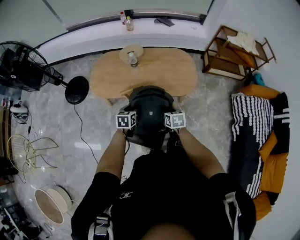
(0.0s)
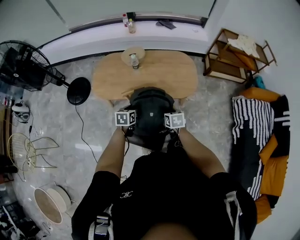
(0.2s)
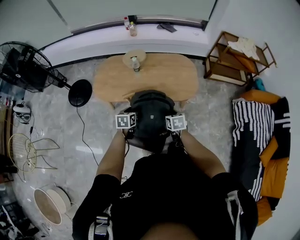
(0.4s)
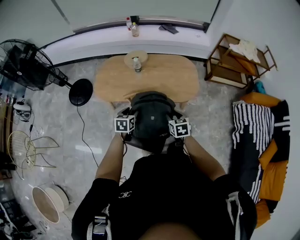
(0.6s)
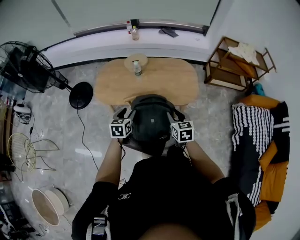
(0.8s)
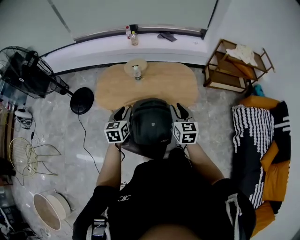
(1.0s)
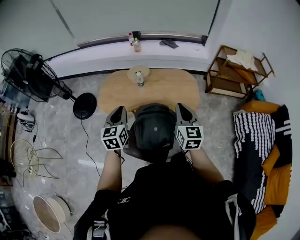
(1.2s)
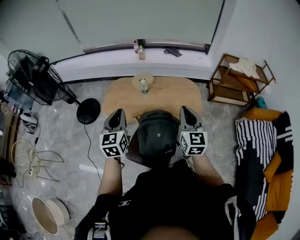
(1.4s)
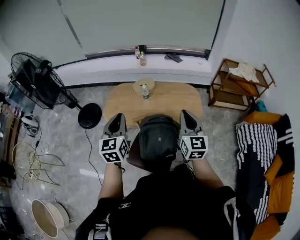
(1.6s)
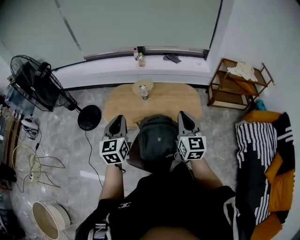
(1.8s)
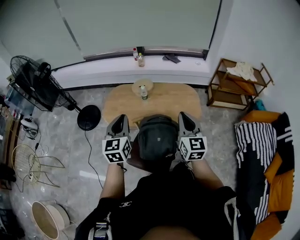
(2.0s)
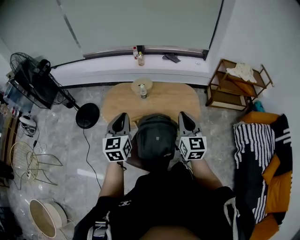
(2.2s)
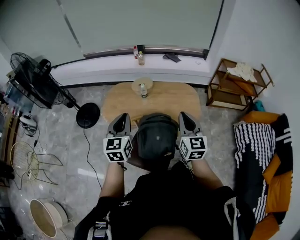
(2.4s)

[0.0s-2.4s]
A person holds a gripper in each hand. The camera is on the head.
0.0s to 1.2s: The two grippers go approximately 25 cm upward. The left gripper turns by about 30 degrees, and closes up; the right gripper tilts its fingers some 40 degrees upward, and opens and closes again.
1.2s to 2.4s: Both grippers move upward, some 5 cm.

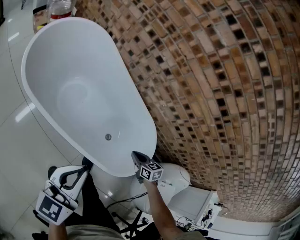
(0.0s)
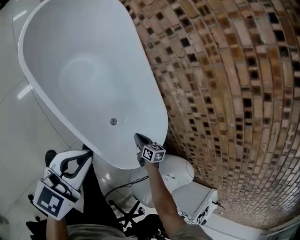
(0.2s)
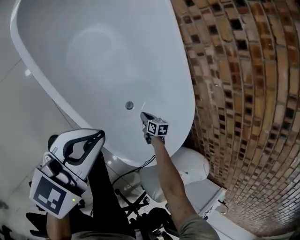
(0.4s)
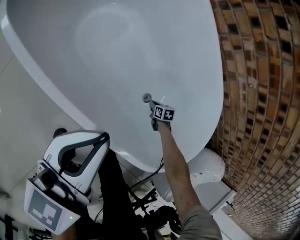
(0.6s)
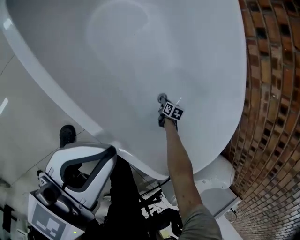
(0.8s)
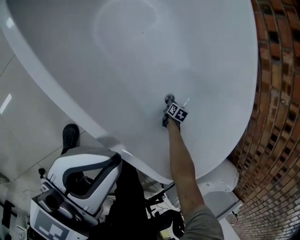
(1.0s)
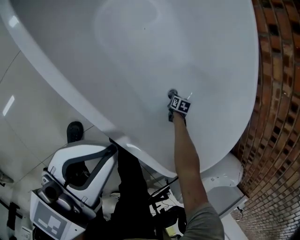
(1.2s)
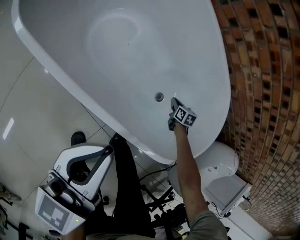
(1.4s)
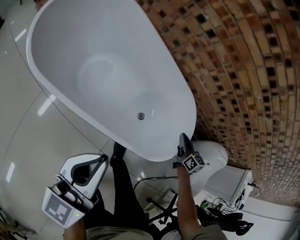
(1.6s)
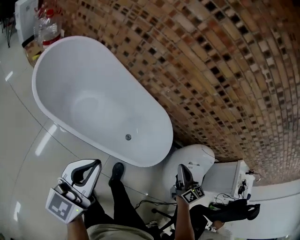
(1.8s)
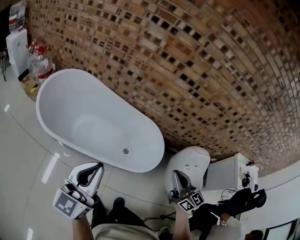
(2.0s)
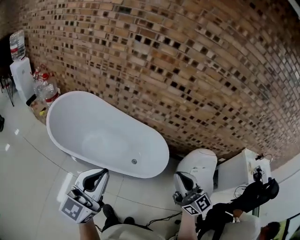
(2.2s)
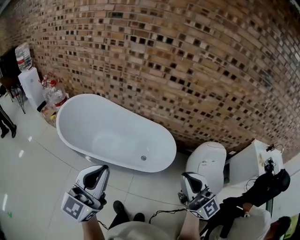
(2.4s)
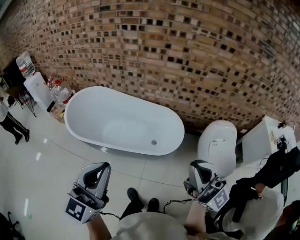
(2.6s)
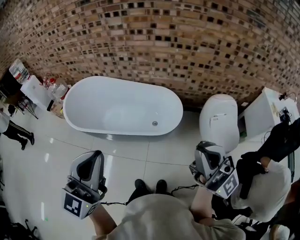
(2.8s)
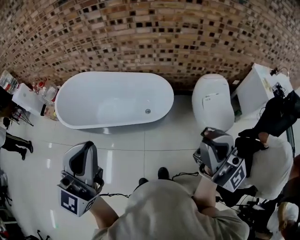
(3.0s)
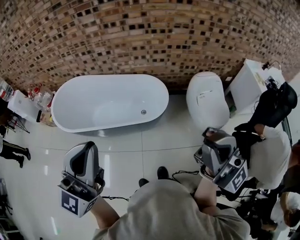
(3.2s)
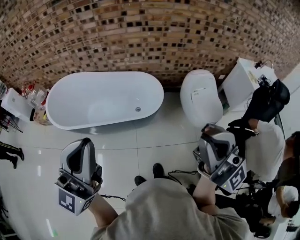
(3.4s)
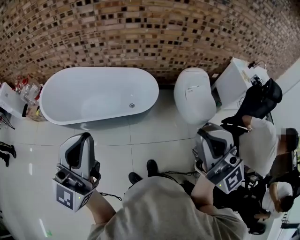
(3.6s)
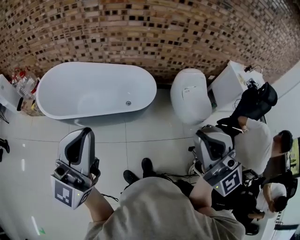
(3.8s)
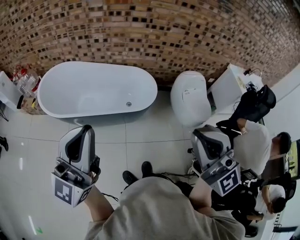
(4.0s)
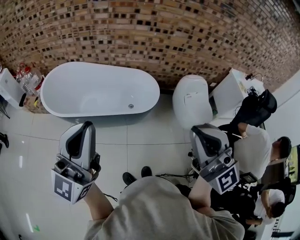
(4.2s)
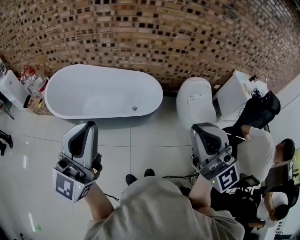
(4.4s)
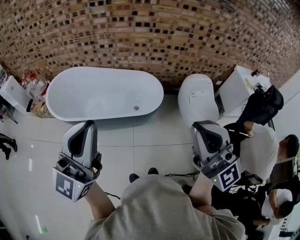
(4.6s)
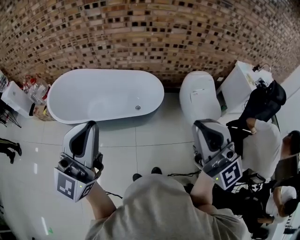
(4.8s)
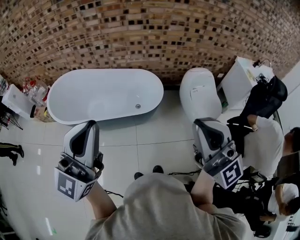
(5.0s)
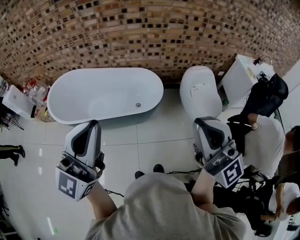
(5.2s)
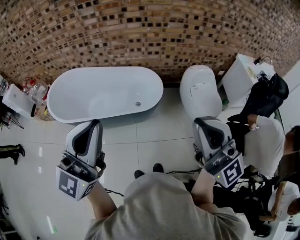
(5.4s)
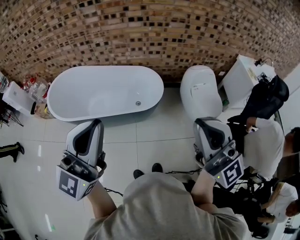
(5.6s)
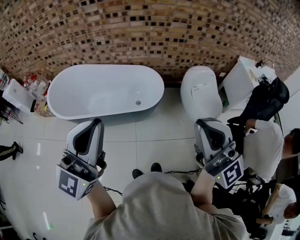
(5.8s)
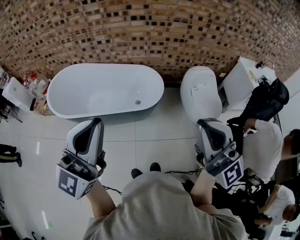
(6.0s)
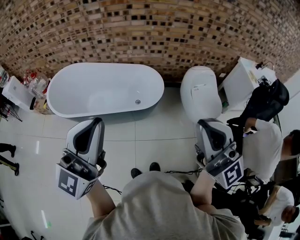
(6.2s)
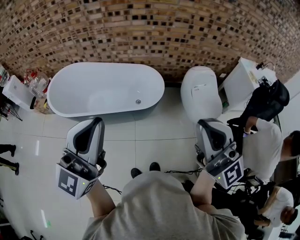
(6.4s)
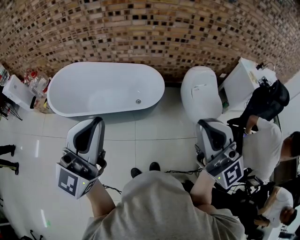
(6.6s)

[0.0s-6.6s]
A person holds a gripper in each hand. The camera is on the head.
0.0s to 1.6s: The right gripper moves some 60 cm downward and comes back, and rotates some 40 degrees; the left gripper reaches some 30 cm downward, then returns.
1.6s to 3.2s: The right gripper shifts roughly 90 cm upward and backward, and tips its fingers upward by roughly 70 degrees. Meanwhile the left gripper travels upward and backward by approximately 60 cm, and changes its angle by approximately 50 degrees.
3.2s to 5.0s: The left gripper reaches roughly 10 cm to the left, then returns.
5.0s to 6.6s: The grippers make only small movements.

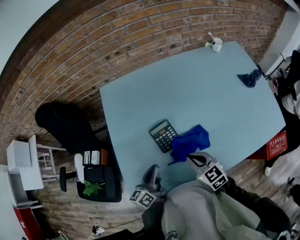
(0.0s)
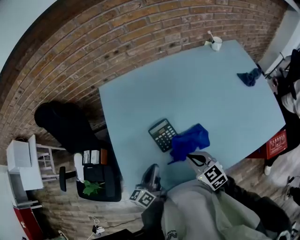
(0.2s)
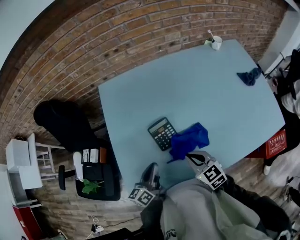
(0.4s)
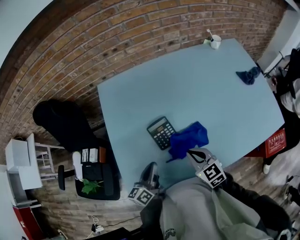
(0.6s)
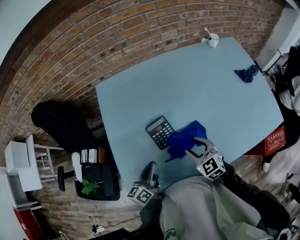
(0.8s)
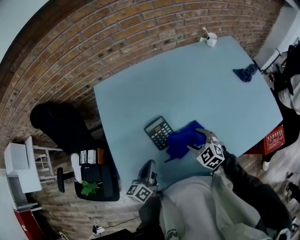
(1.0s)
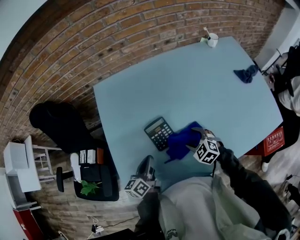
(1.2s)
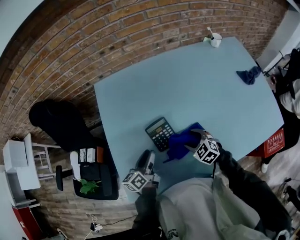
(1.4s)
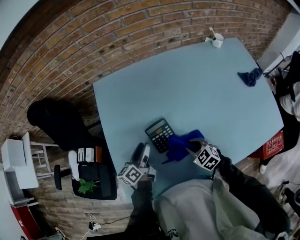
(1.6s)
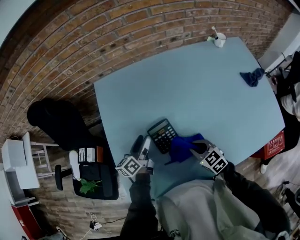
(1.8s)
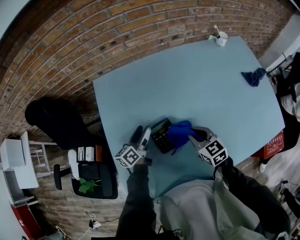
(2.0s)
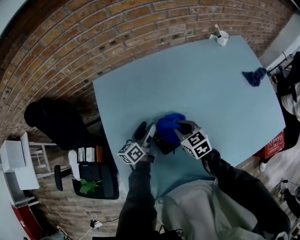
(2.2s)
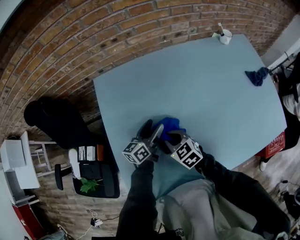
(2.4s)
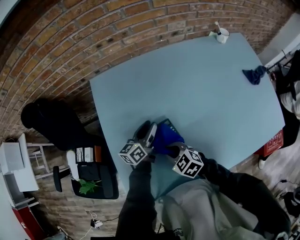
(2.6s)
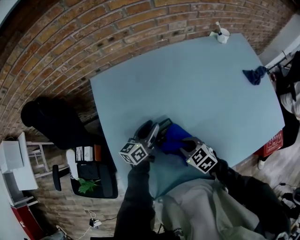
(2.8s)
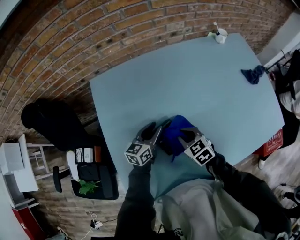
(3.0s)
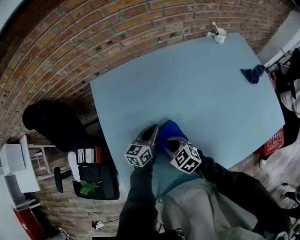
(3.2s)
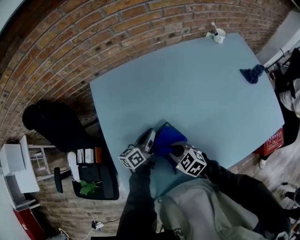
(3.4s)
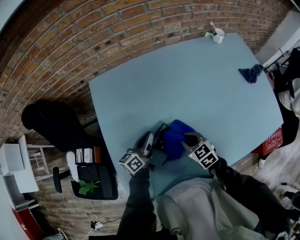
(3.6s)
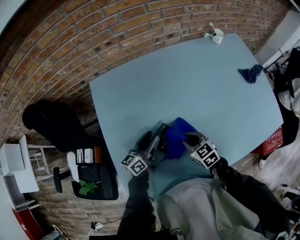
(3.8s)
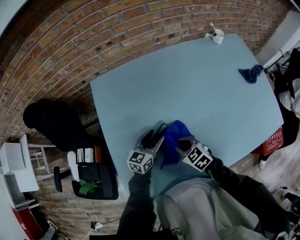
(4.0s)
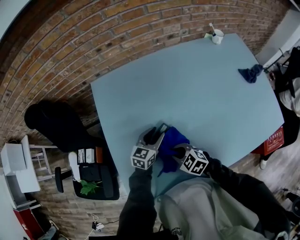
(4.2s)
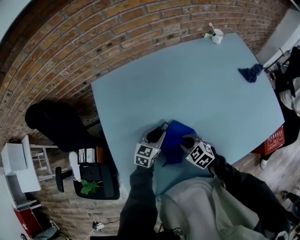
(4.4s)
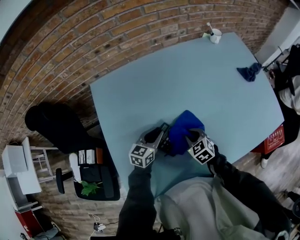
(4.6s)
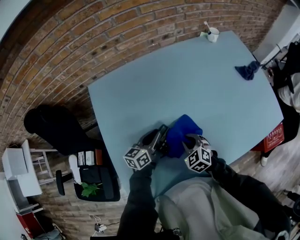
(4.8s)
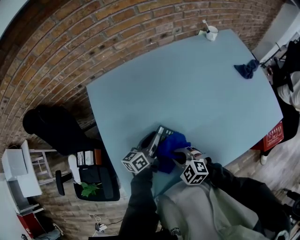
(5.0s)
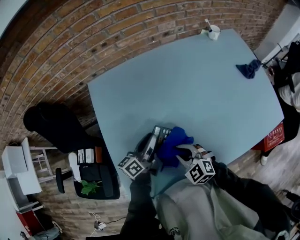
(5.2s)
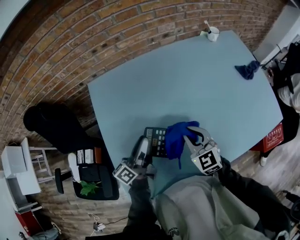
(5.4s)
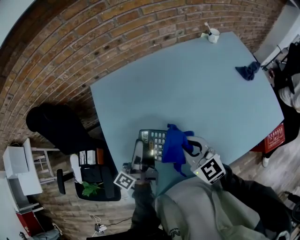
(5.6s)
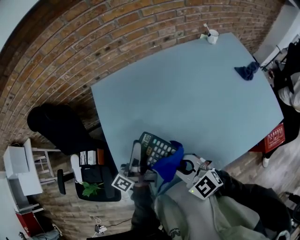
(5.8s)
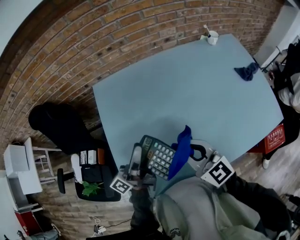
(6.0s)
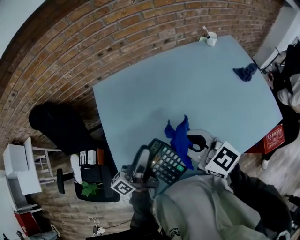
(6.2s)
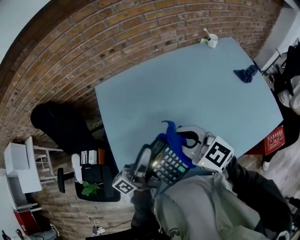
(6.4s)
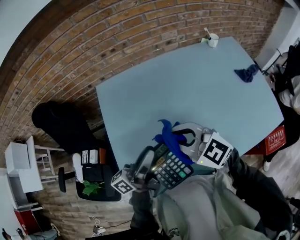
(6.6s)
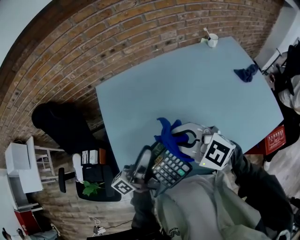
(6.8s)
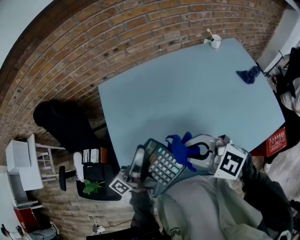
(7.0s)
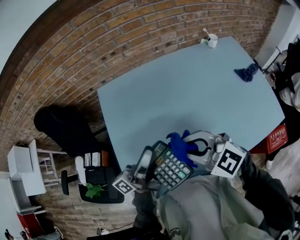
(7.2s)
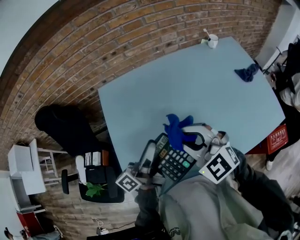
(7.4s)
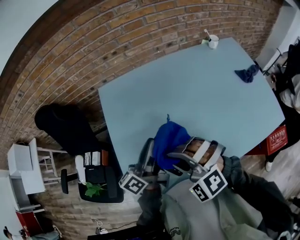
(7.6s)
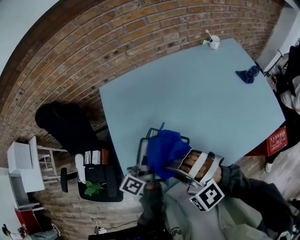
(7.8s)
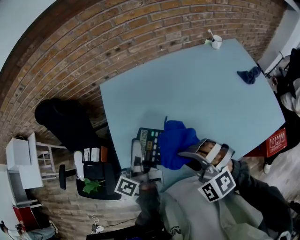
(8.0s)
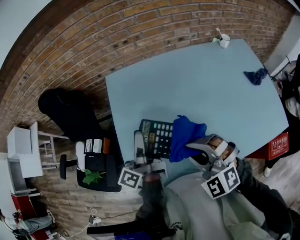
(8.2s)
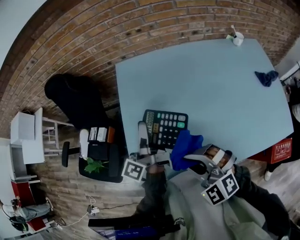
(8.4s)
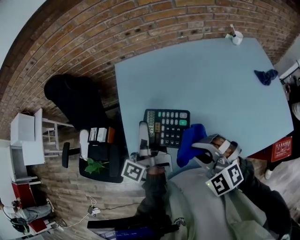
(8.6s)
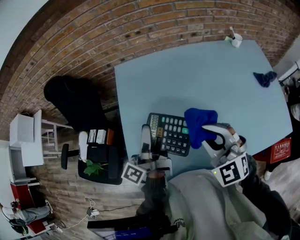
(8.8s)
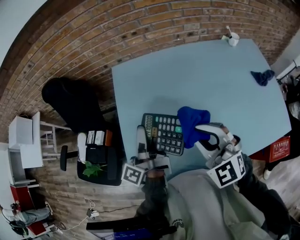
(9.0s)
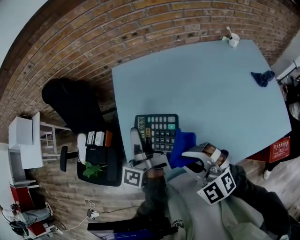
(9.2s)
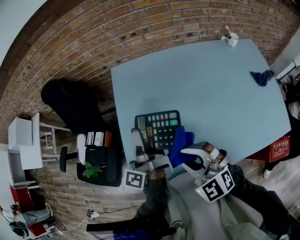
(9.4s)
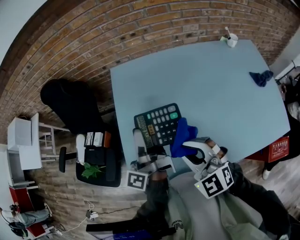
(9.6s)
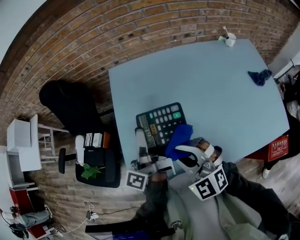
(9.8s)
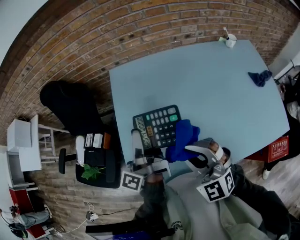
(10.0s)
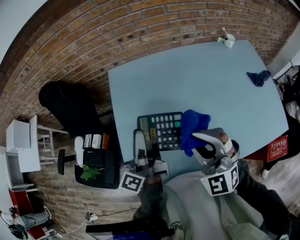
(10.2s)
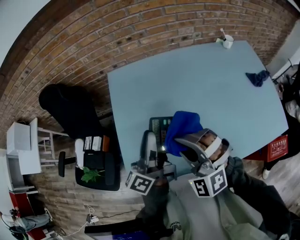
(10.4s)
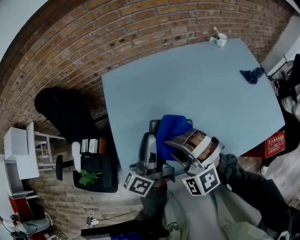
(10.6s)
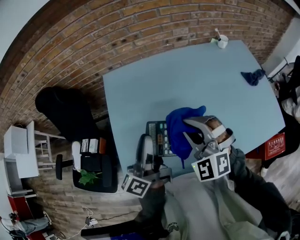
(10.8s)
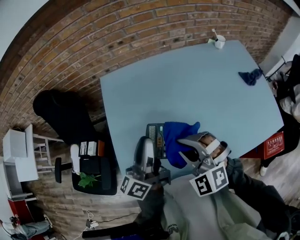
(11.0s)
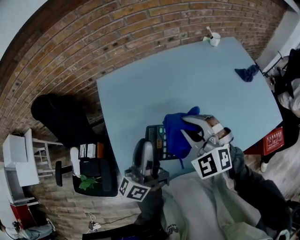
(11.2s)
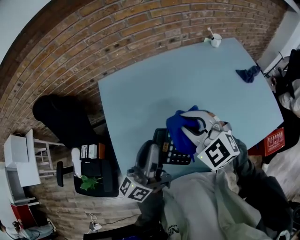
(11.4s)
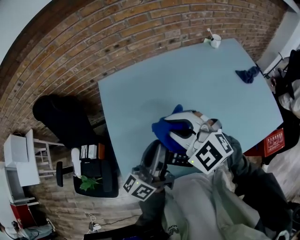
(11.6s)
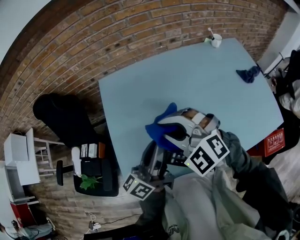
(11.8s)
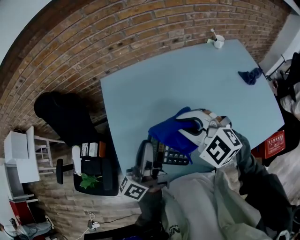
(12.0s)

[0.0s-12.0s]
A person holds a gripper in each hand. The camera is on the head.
0.0s to 1.6s: The left gripper travels forward by roughly 10 cm, and opens up, while the right gripper heads downward, covering about 10 cm, changes its angle by some 20 degrees, and opens, then closes again.
1.6s to 3.0s: The left gripper is displaced to the right and forward by some 10 cm, and rotates about 30 degrees, while the right gripper shifts roughly 10 cm forward, and moves some 15 cm to the left and comes back.
3.0s to 4.4s: The right gripper goes left and right, roughly 10 cm each way, reversing 3 times, while the left gripper shifts by about 5 cm, rotates some 20 degrees, and closes and opens again.
4.4s to 6.0s: The two grippers go some 20 cm upward. The left gripper tips its fingers upward by approximately 50 degrees; the right gripper angles its fingers upward, by about 40 degrees.
6.0s to 7.6s: The right gripper travels to the left by approximately 5 cm, and rolls counterclockwise, seen from behind, by about 60 degrees. Meanwhile the left gripper swivels roughly 20 degrees.
7.6s to 9.0s: The right gripper moves left and right over approximately 10 cm, changing direction 2 times, and rotates roughly 30 degrees, while the left gripper travels to the left by roughly 10 cm, and rotates roughly 40 degrees.
9.0s to 10.4s: The left gripper ends up roughly 5 cm from where it was, and swivels about 30 degrees; the right gripper goes left and right, approximately 5 cm each way, reversing 2 times, and turns by roughly 30 degrees.
10.4s to 12.0s: The right gripper swings left and right, about 10 cm each way, with 2 reversals, and changes its angle by some 30 degrees.

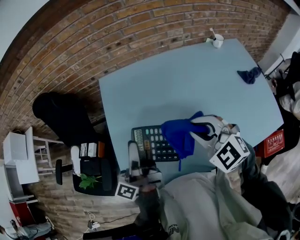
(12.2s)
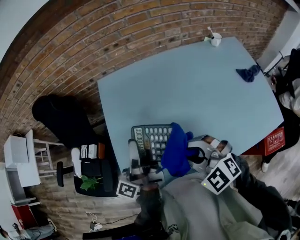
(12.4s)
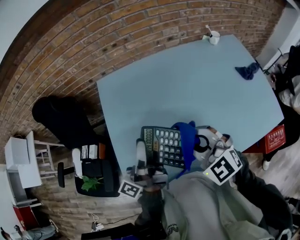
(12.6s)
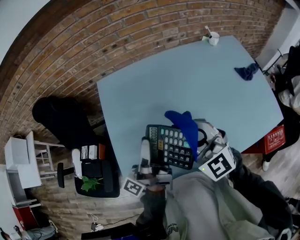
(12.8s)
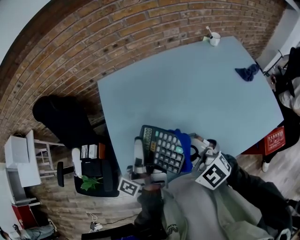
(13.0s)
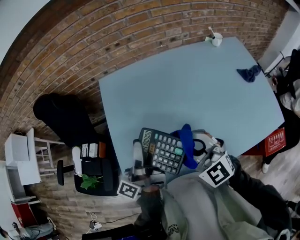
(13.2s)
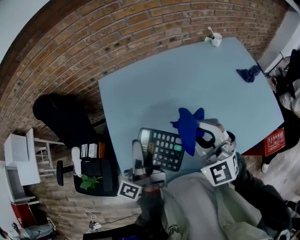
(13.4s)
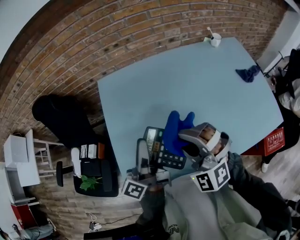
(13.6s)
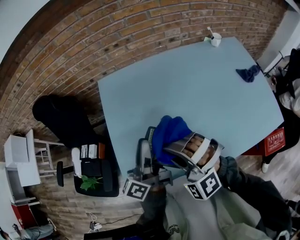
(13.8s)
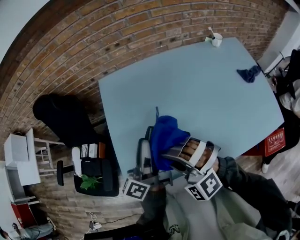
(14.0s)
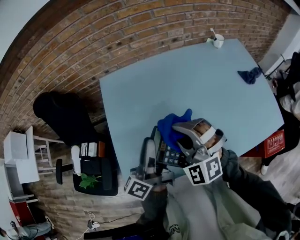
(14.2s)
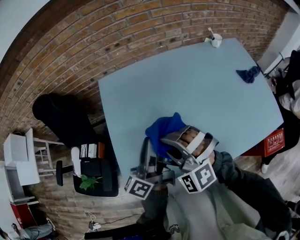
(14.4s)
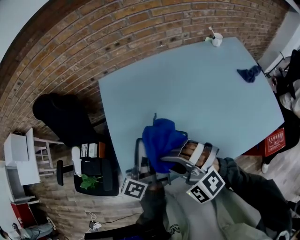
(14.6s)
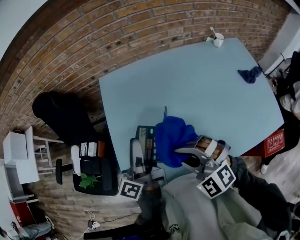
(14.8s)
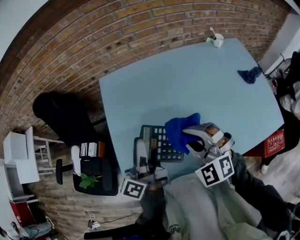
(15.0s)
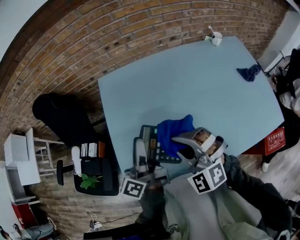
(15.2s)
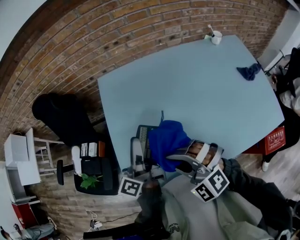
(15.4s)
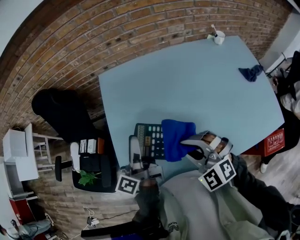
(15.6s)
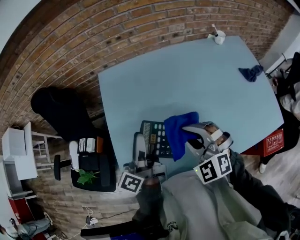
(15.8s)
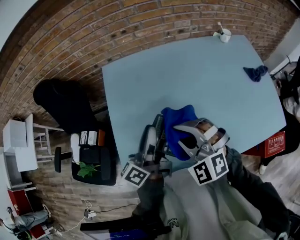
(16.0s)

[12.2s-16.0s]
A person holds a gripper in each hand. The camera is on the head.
12.2s to 13.4s: The right gripper turns by some 30 degrees.
13.4s to 14.8s: The right gripper swings left and right, about 10 cm each way, with 3 reversals, and rotates roughly 30 degrees.
14.8s to 16.0s: The left gripper changes place by roughly 5 cm, while the right gripper goes left and right, approximately 10 cm each way, reversing 2 times.
